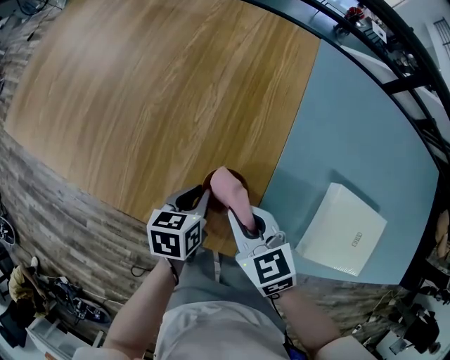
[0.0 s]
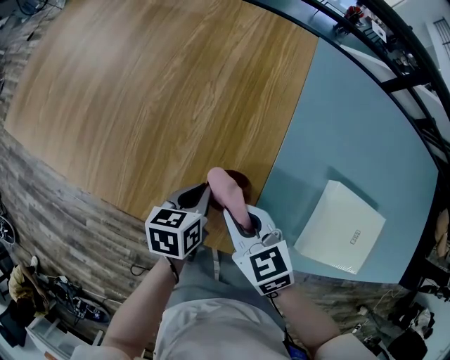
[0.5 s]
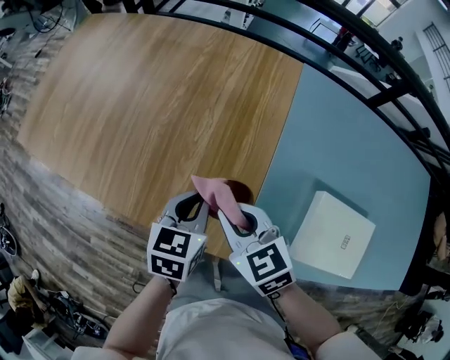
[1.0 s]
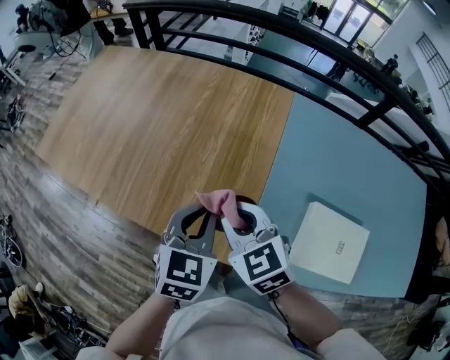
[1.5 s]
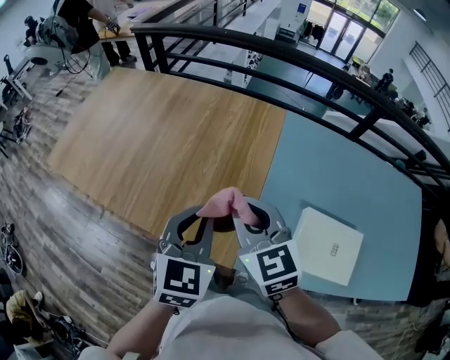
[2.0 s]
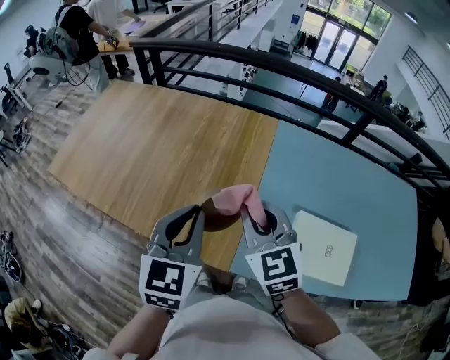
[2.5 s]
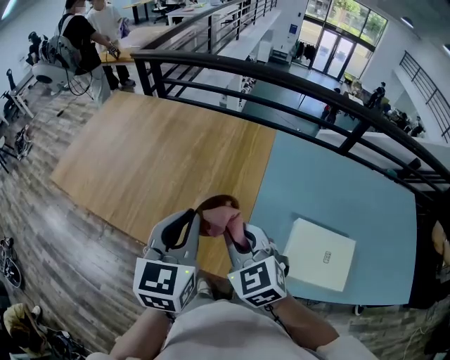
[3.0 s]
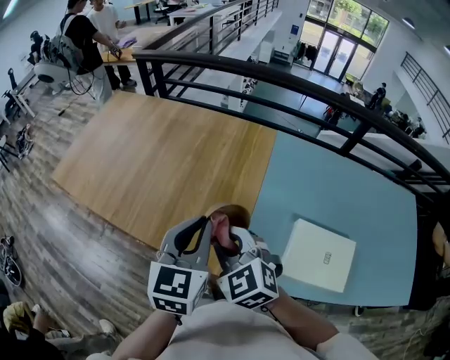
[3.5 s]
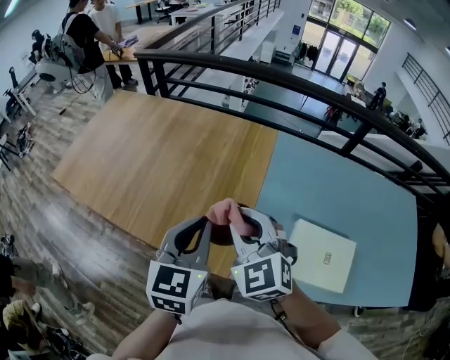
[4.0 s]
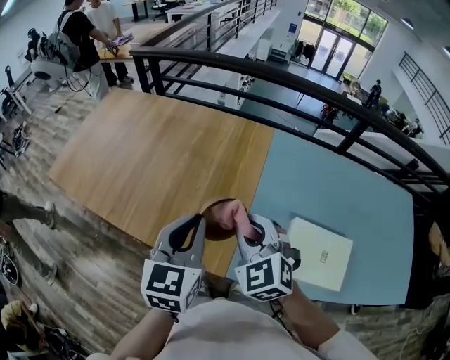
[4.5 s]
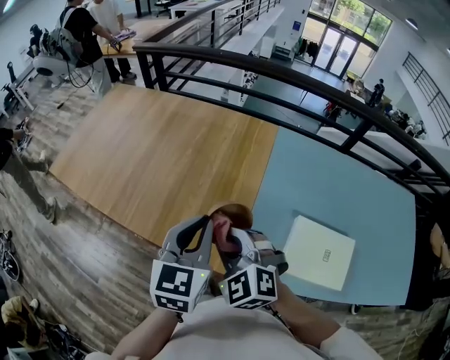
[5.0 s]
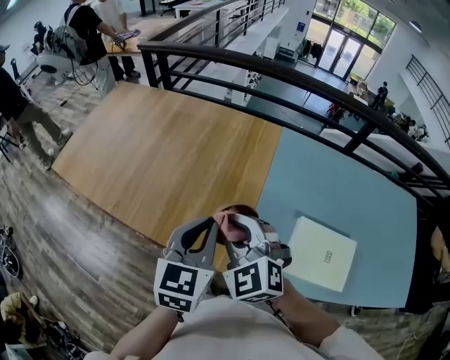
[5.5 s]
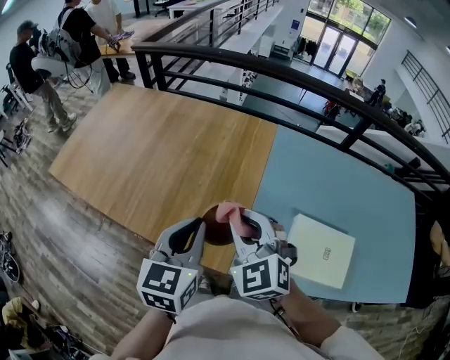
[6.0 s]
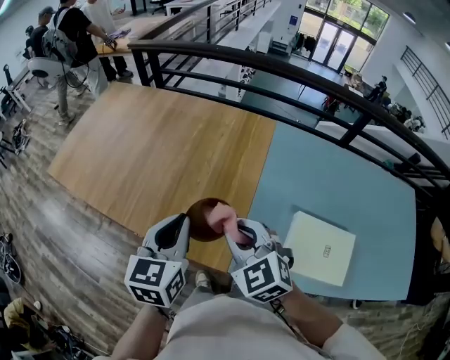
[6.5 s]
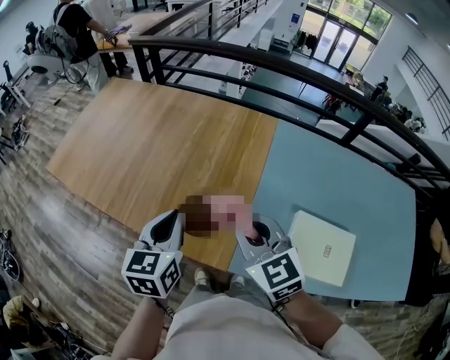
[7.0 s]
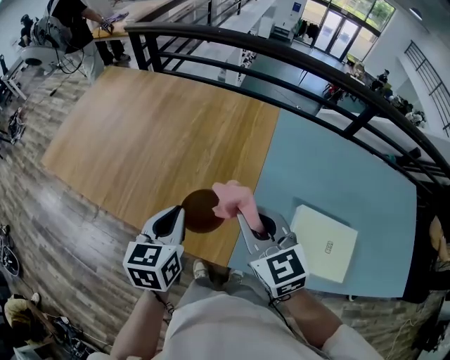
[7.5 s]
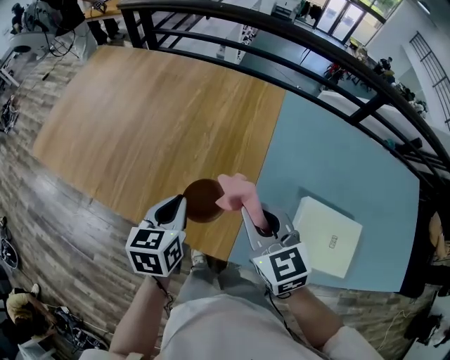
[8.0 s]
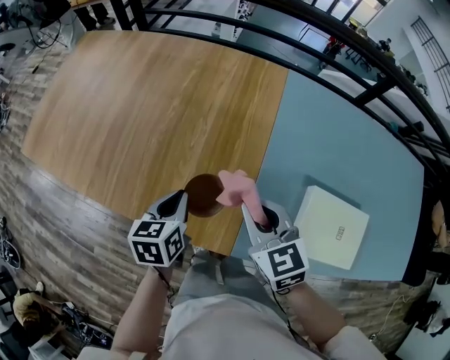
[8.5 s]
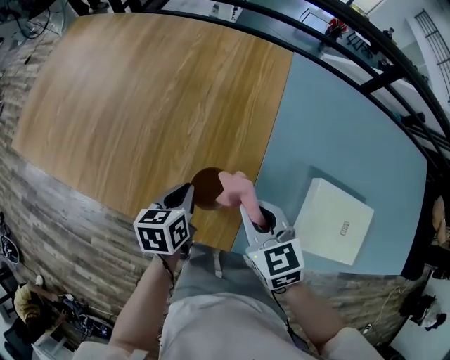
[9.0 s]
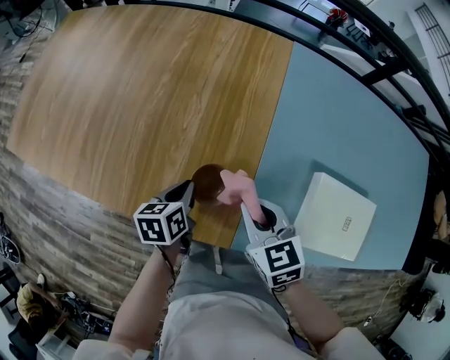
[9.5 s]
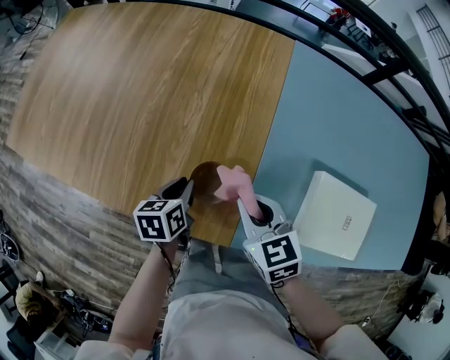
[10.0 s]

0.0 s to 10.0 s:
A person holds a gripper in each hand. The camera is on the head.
0.0 to 2.0 s: Both grippers travel together upward, some 30 cm. The right gripper turns by about 30 degrees. Meanwhile the left gripper rotates roughly 50 degrees.
2.0 to 4.0 s: The left gripper changes place by about 5 cm; the right gripper moves left and right over about 10 cm, changing direction 2 times, and rotates about 20 degrees.
6.0 to 8.0 s: The left gripper shifts about 15 cm downward and forward. The right gripper goes some 10 cm downward, and rotates about 30 degrees.
8.0 to 10.0 s: The grippers both shift downward by roughly 20 cm. The left gripper rotates some 20 degrees.

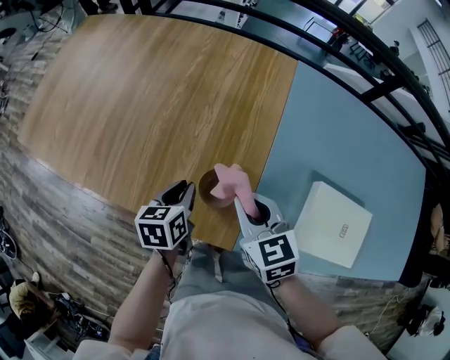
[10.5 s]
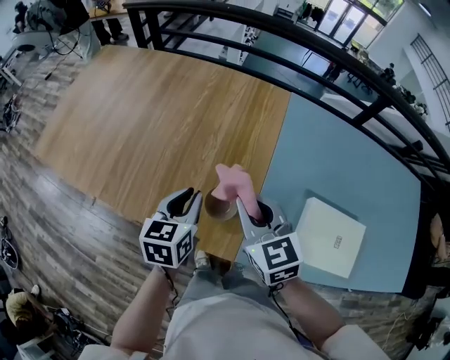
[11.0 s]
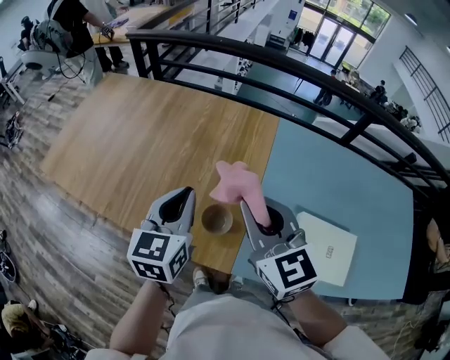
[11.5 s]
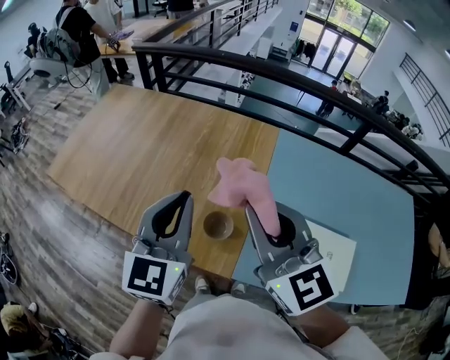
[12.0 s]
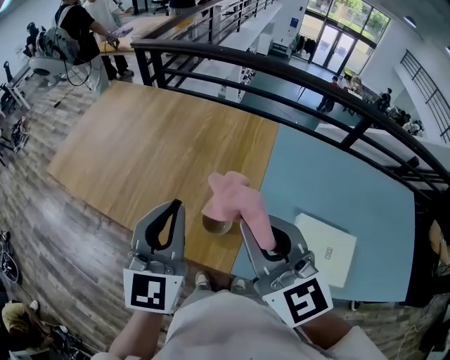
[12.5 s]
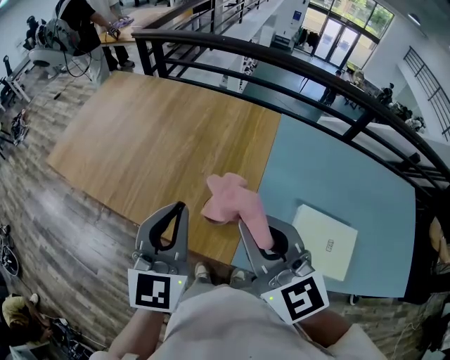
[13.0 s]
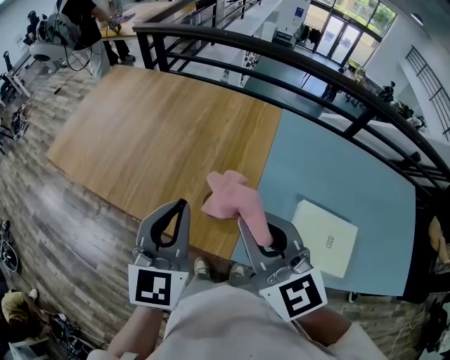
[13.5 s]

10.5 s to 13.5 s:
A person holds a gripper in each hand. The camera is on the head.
10.5 to 12.0 s: Both grippers travel together upward, about 35 cm. The left gripper tips its fingers upward by about 40 degrees. The right gripper tips its fingers upward by roughly 30 degrees.
12.0 to 13.5 s: Both grippers move backward, roughly 5 cm.

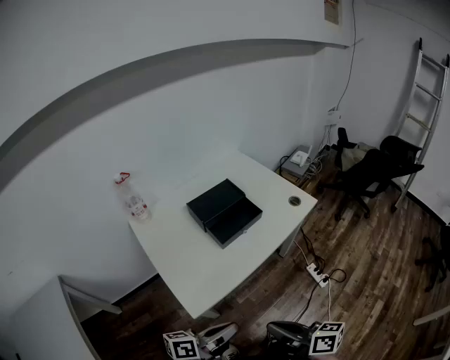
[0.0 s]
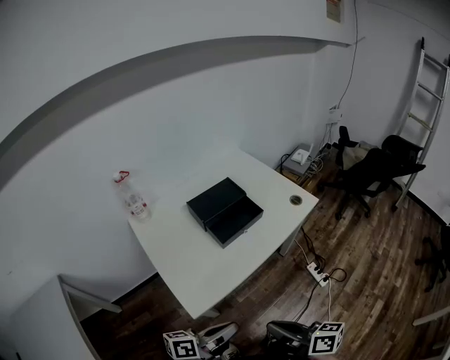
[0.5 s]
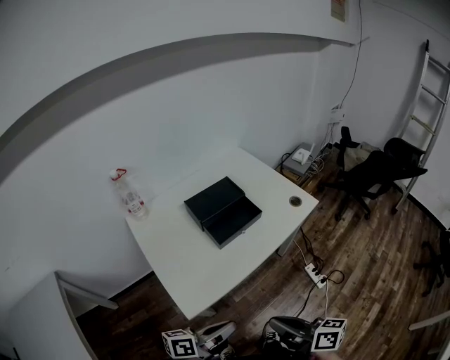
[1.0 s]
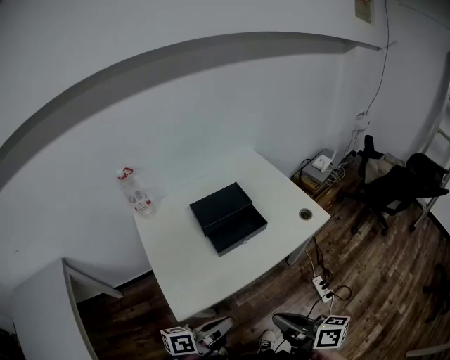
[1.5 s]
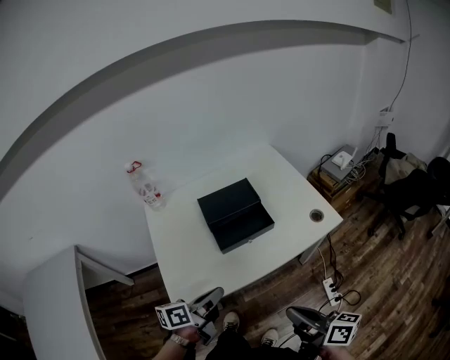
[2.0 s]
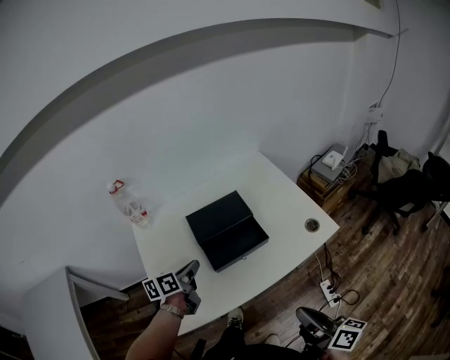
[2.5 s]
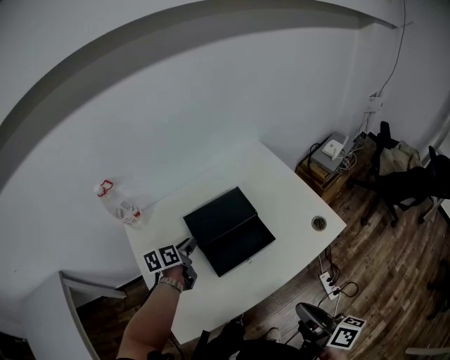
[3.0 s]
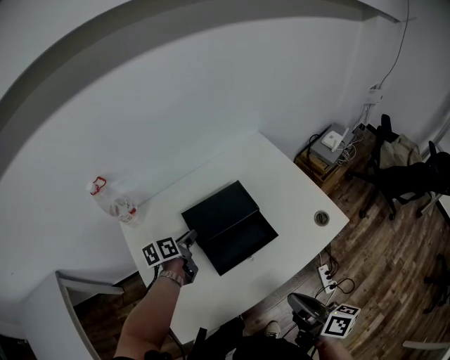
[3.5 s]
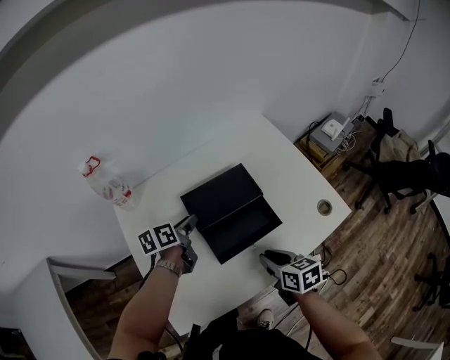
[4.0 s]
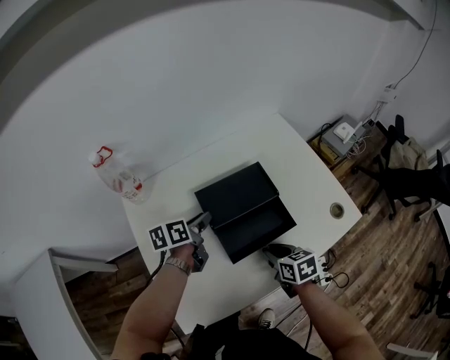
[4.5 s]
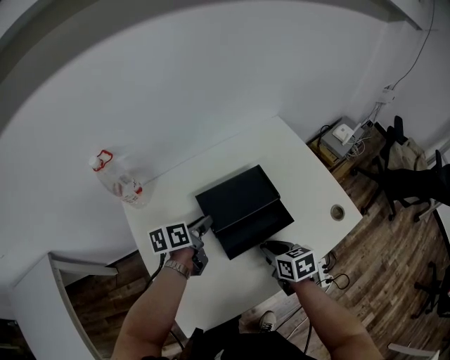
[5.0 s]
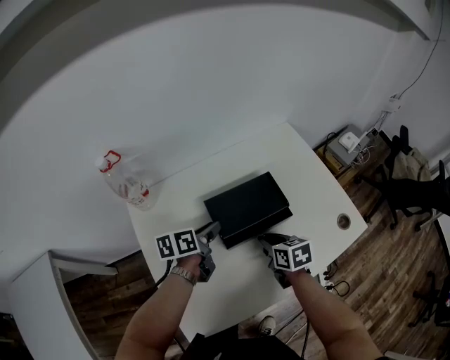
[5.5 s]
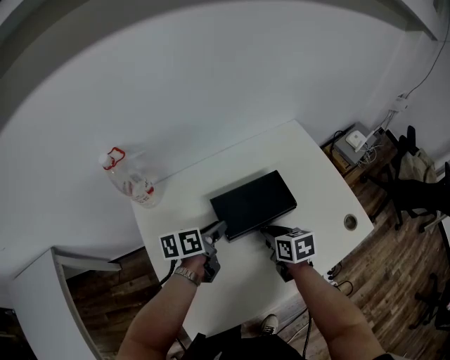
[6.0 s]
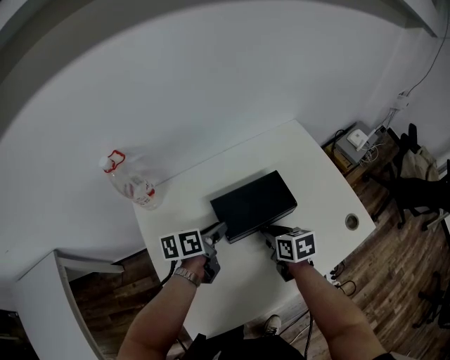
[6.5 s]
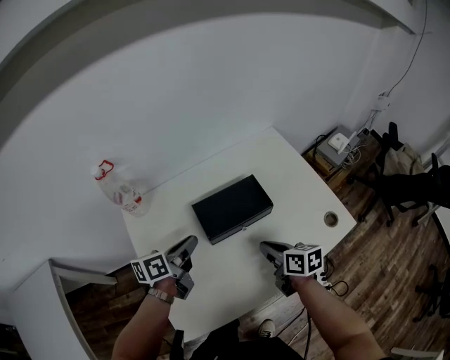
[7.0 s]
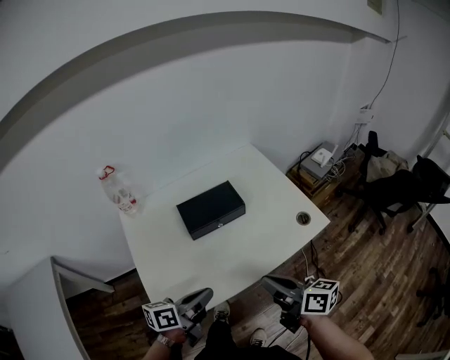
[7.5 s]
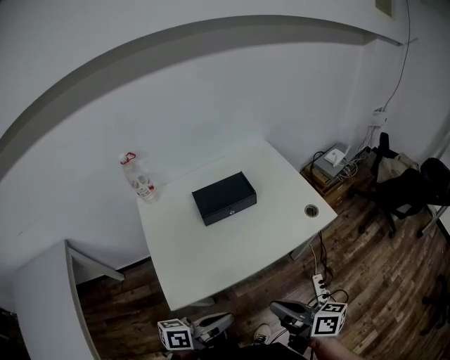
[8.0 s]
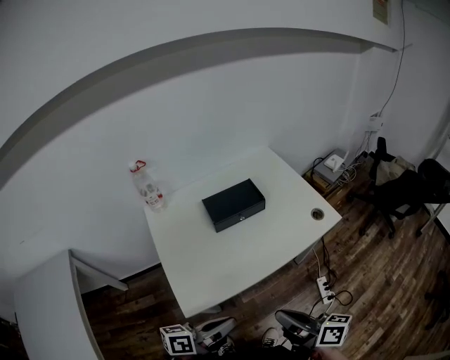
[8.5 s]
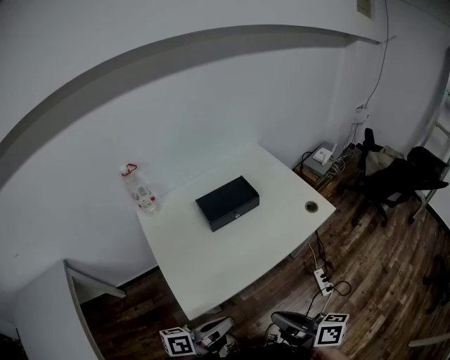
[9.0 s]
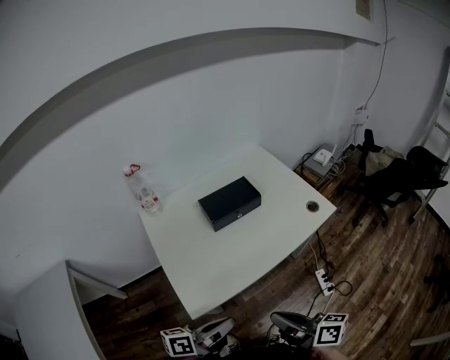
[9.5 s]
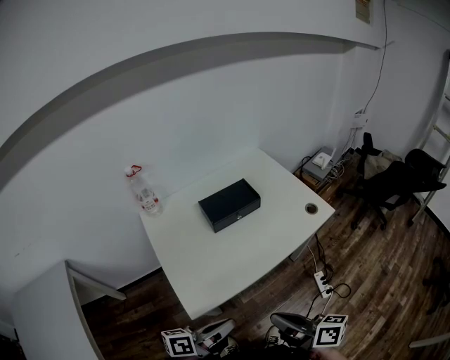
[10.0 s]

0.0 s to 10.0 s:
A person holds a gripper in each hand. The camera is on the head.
0.0 to 2.0 s: The right gripper is displaced forward and to the right by approximately 20 cm. The left gripper heads forward, covering about 15 cm, and turns by about 30 degrees.
2.0 to 4.0 s: The right gripper heads forward and downward, covering some 30 cm, and points its fingers roughly 30 degrees further downward. The left gripper moves forward, about 30 cm, rotates roughly 20 degrees, and opens its fingers.
4.0 to 6.0 s: The right gripper is displaced forward and to the left by roughly 15 cm.
6.0 to 8.0 s: The left gripper travels backward by roughly 40 cm, rotates some 30 degrees, and closes up. The right gripper goes some 40 cm backward and upward, and angles its fingers upward, by approximately 40 degrees.
8.0 to 10.0 s: The right gripper goes about 10 cm to the left and backward; the left gripper heads to the left, covering approximately 10 cm.

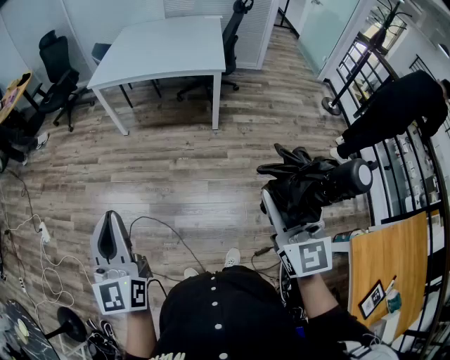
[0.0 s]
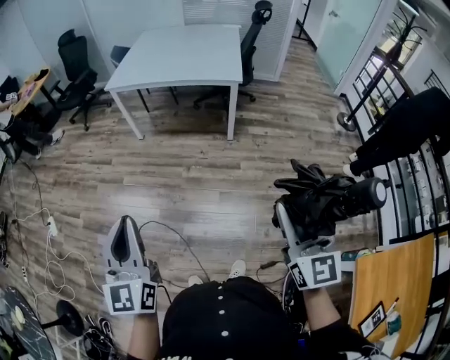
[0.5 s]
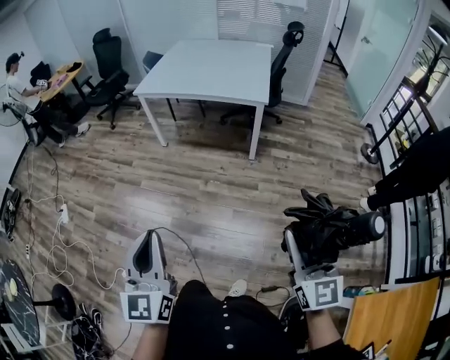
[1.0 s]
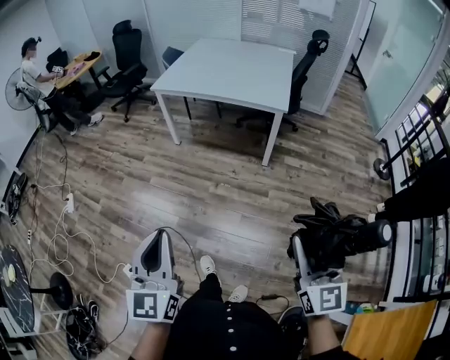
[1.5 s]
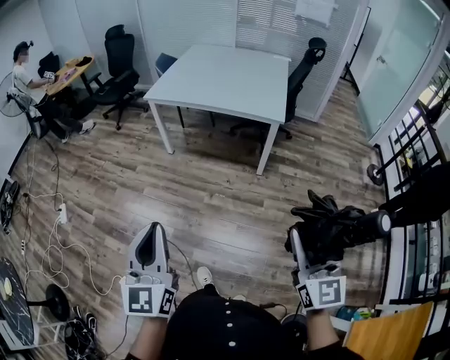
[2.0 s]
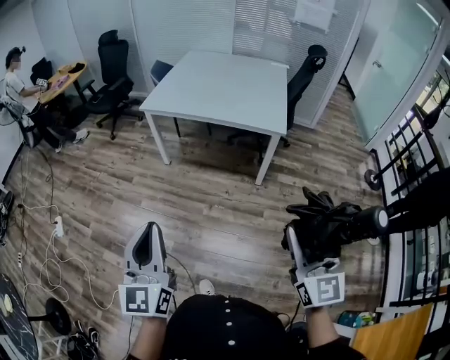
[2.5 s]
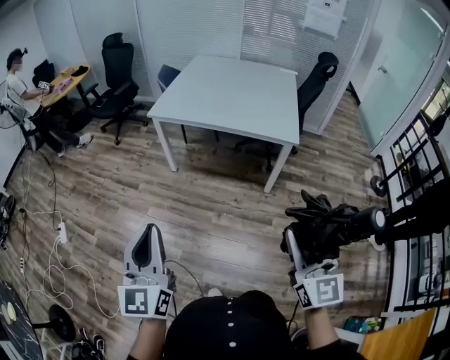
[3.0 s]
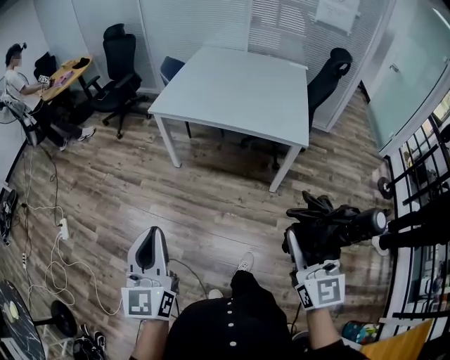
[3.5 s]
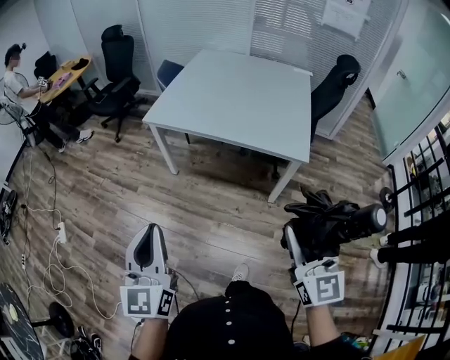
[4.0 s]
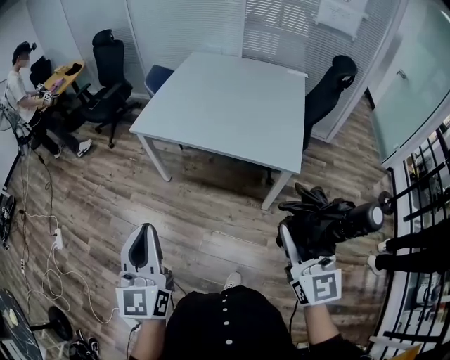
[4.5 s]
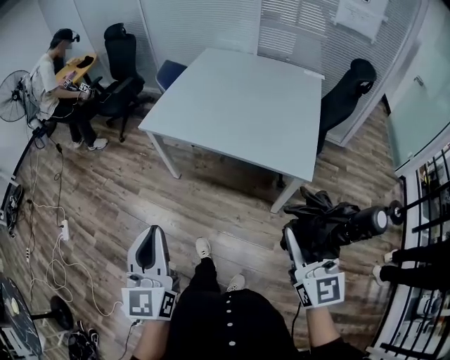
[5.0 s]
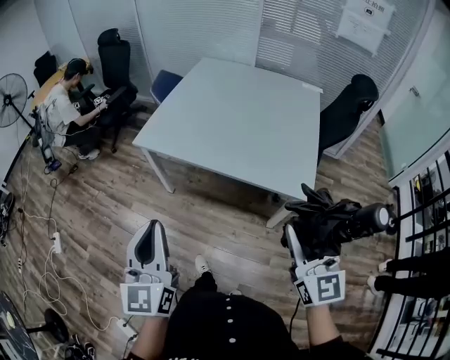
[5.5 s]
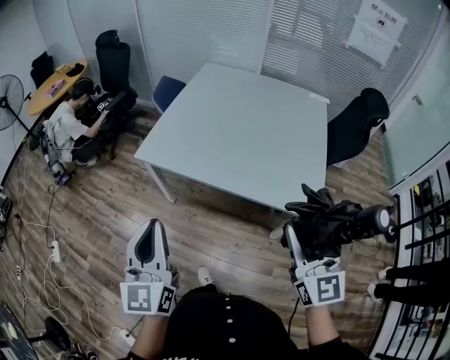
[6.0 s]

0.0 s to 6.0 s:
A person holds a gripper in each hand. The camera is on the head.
0.0 to 2.0 s: The two grippers go some 10 cm forward.
2.0 to 4.0 s: The two grippers go approximately 25 cm forward.
4.0 to 6.0 s: Both grippers move forward, some 25 cm.
